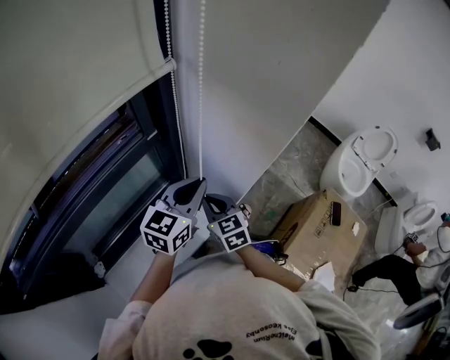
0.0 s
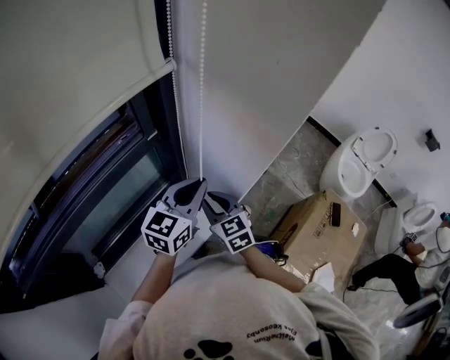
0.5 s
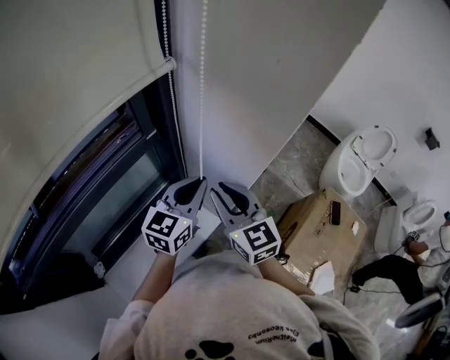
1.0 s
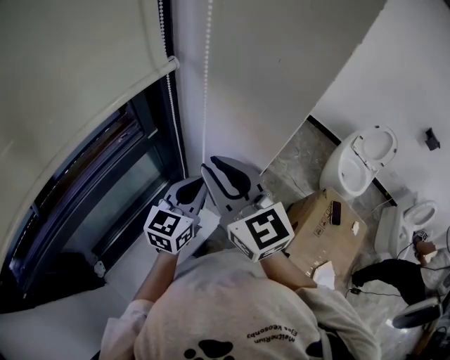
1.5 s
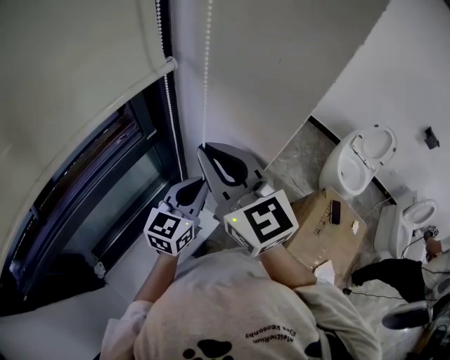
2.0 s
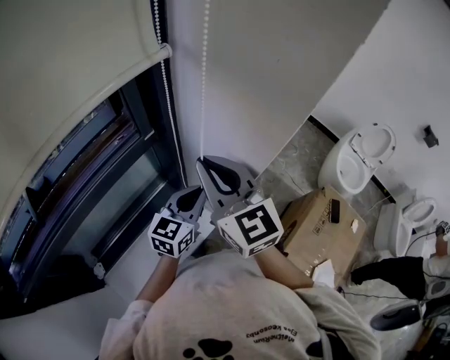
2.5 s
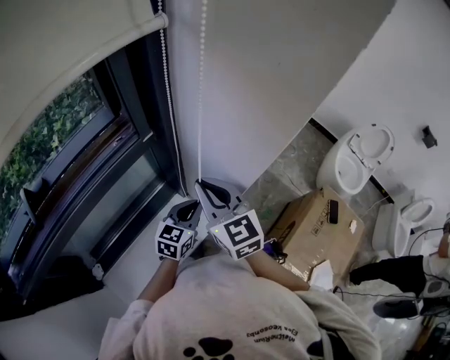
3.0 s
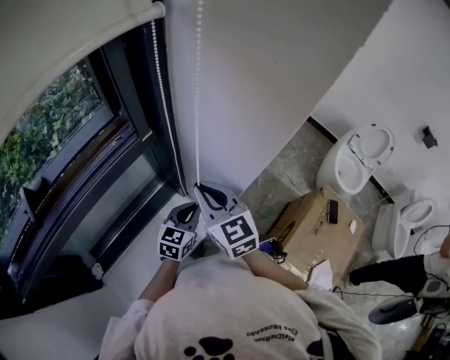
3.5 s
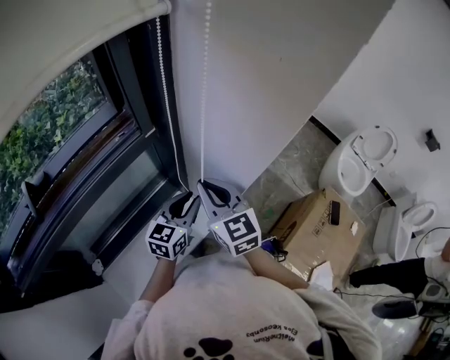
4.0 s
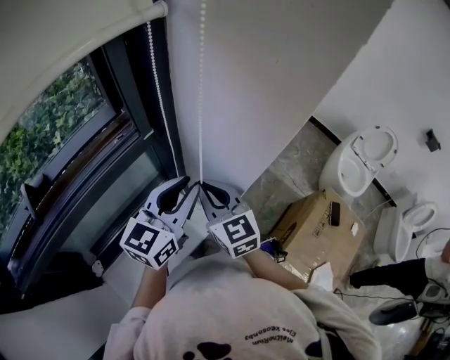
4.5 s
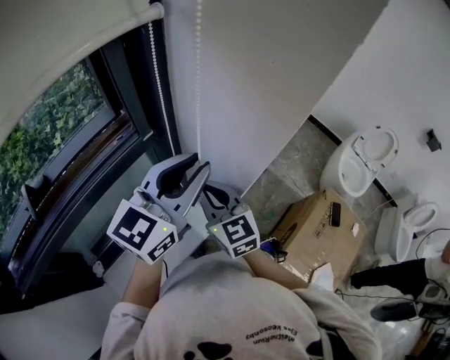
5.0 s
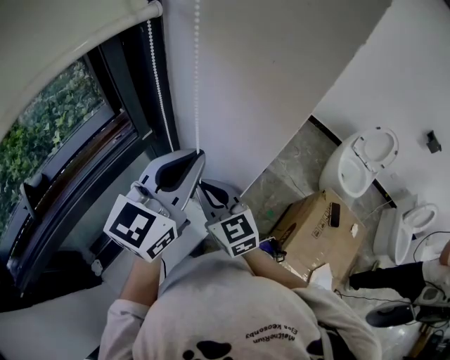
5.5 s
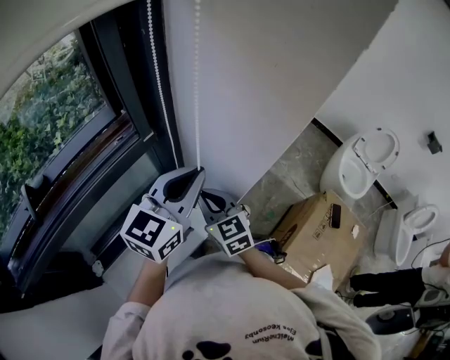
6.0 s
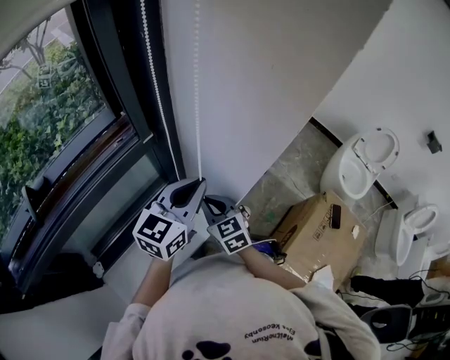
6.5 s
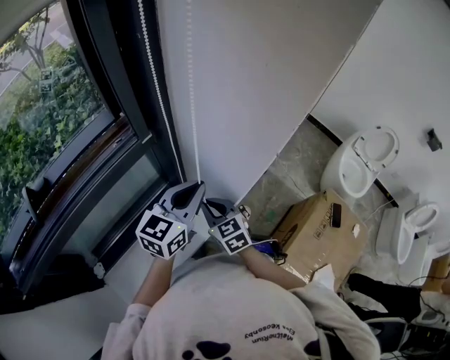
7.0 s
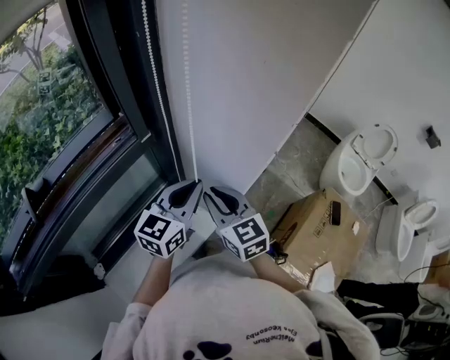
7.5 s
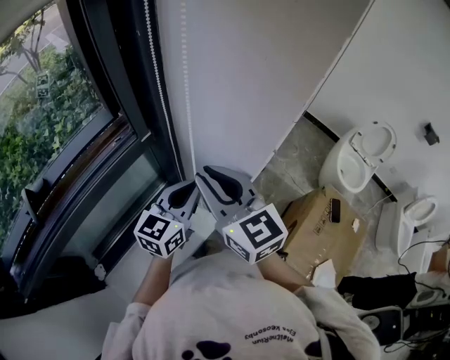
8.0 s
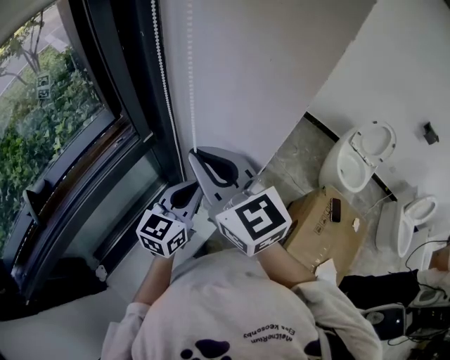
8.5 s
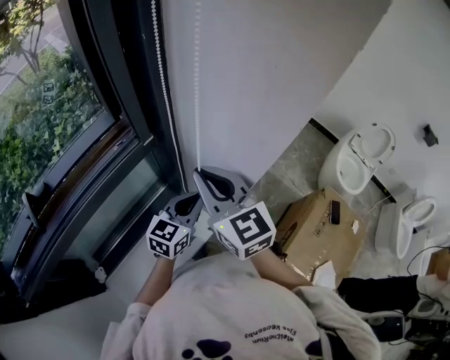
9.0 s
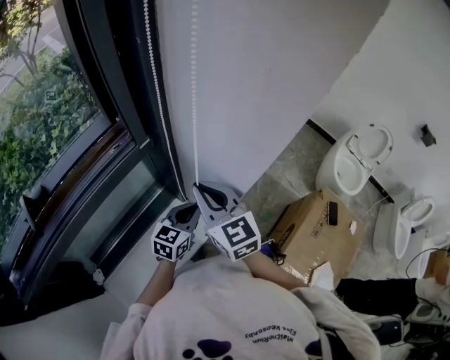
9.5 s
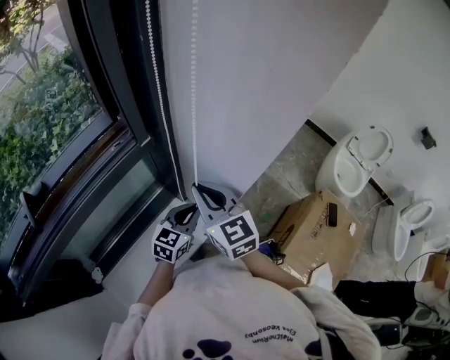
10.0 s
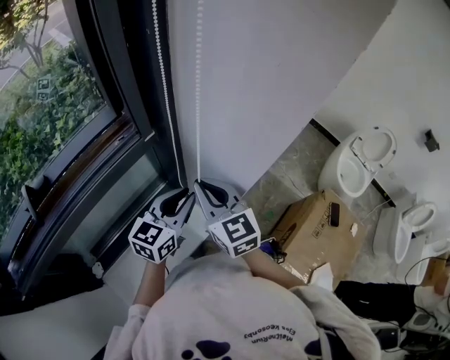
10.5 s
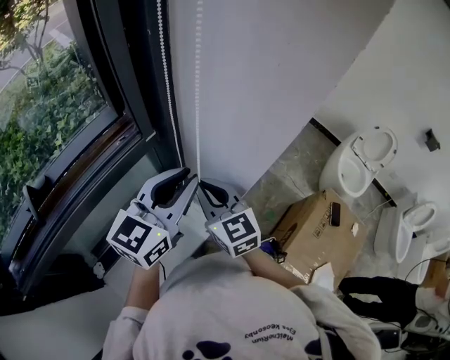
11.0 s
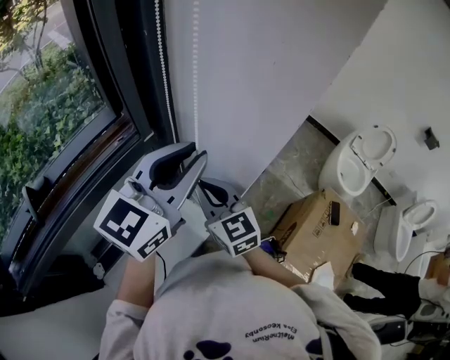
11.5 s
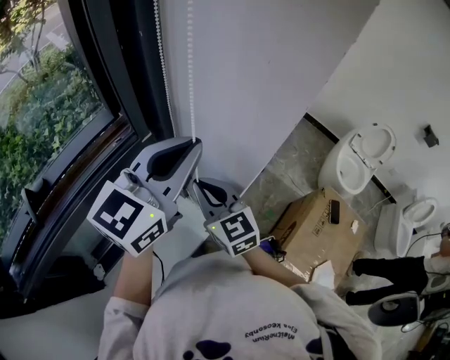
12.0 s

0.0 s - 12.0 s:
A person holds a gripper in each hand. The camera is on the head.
0.0 s - 2.0 s: The right gripper is displaced upward by some 30 cm, and turns by about 30 degrees.
2.0 s - 4.0 s: The right gripper goes about 15 cm downward. Meanwhile the left gripper moves downward, approximately 10 cm.
4.0 s - 6.0 s: The right gripper travels downward by roughly 5 cm, while the left gripper heads upward, covering about 20 cm.
6.0 s - 8.0 s: The right gripper travels upward by approximately 15 cm. The left gripper goes some 10 cm downward.
8.0 s - 10.0 s: The right gripper goes roughly 10 cm downward. The left gripper travels downward by about 15 cm.
10.0 s - 12.0 s: The left gripper is displaced upward by approximately 30 cm, and changes its angle by about 20 degrees.

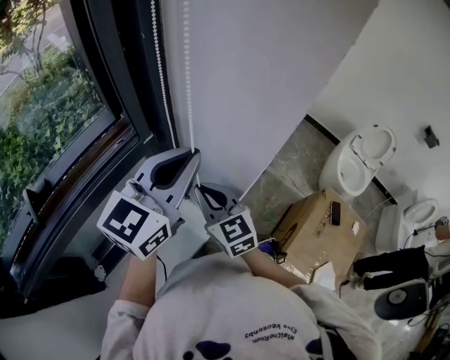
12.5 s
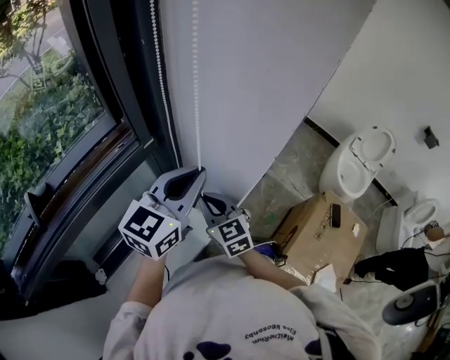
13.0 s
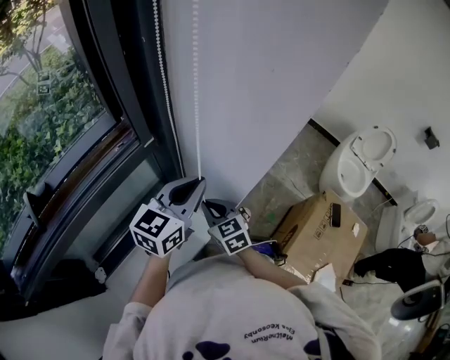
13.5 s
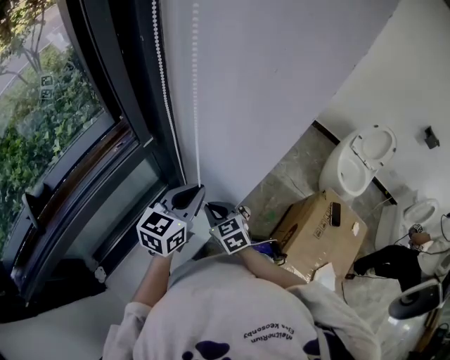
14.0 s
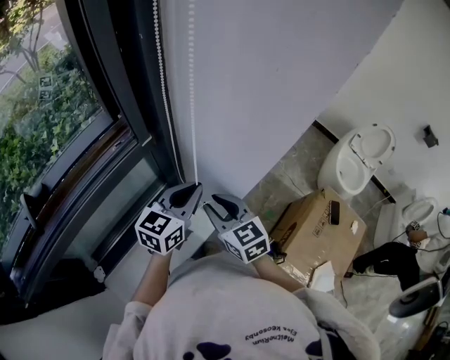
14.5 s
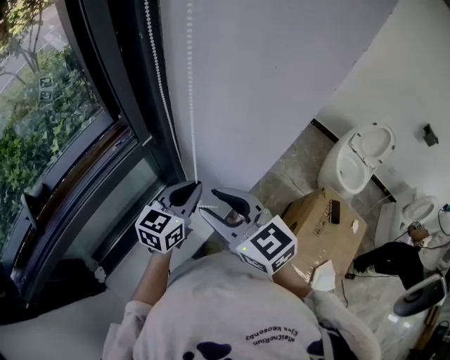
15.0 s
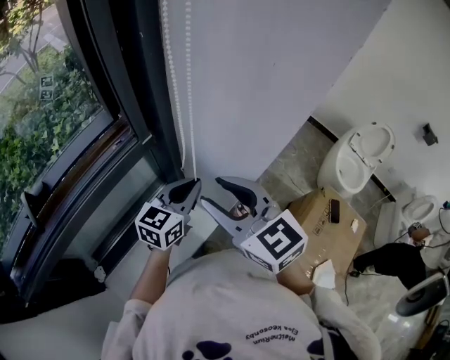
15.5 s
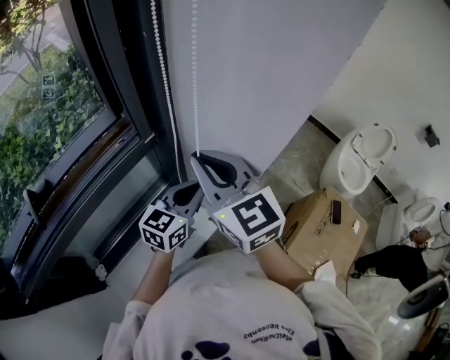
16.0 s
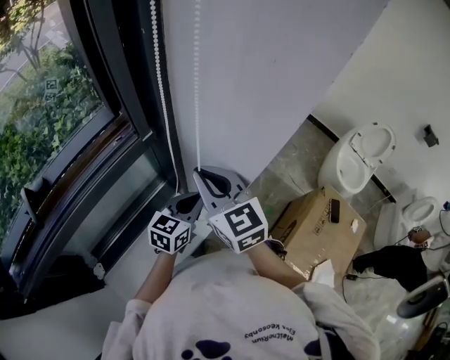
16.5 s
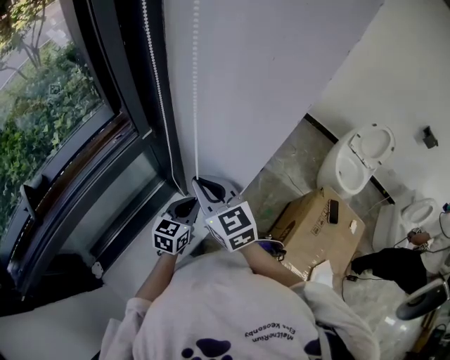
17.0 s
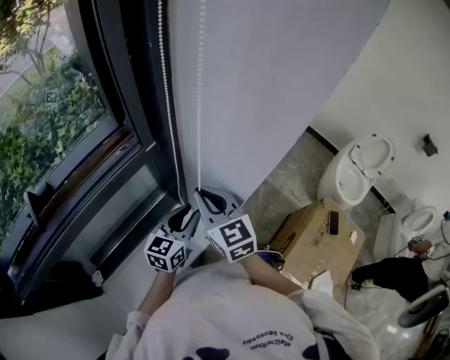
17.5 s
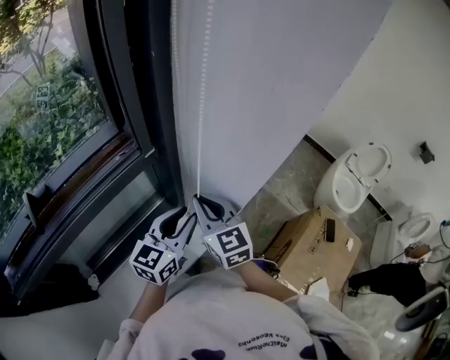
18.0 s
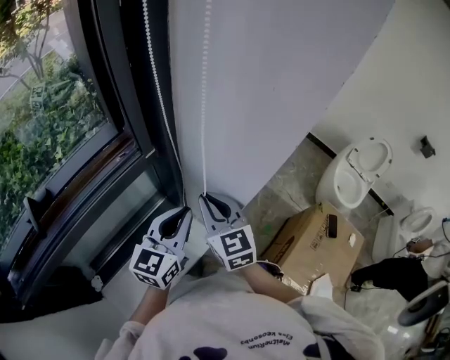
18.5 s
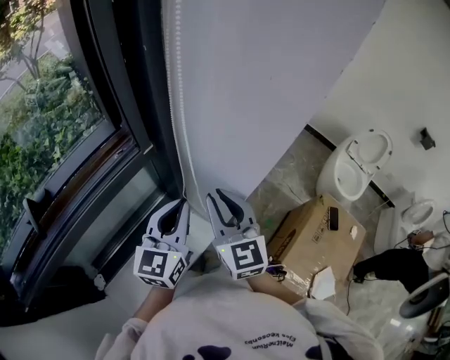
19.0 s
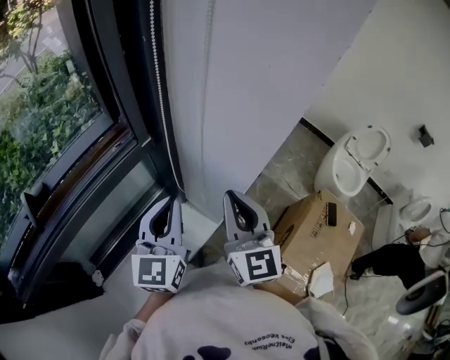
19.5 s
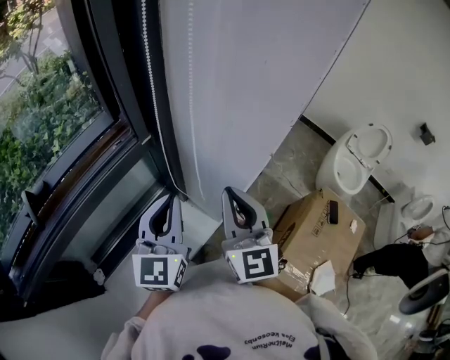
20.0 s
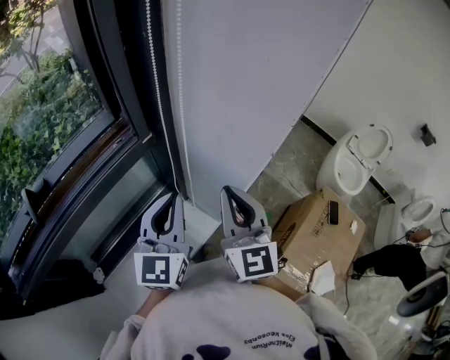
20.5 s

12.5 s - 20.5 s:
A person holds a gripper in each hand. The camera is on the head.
12.5 s - 14.5 s: The left gripper is displaced downward by some 20 cm. Meanwhile the right gripper moves some 15 cm downward and comes back, and opens up.
14.5 s - 16.5 s: The left gripper goes roughly 5 cm downward; the right gripper shifts about 10 cm upward, and closes up.
16.5 s - 18.5 s: The left gripper heads upward, covering some 10 cm.
18.5 s - 20.5 s: The right gripper heads upward and to the right, covering about 10 cm, while the left gripper is displaced upward by about 5 cm.

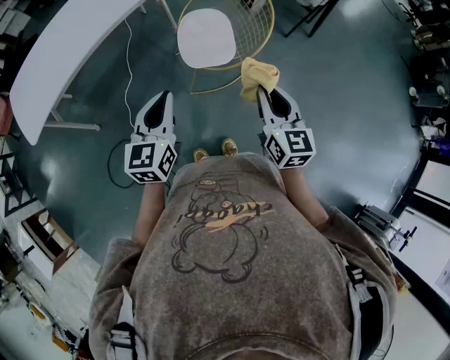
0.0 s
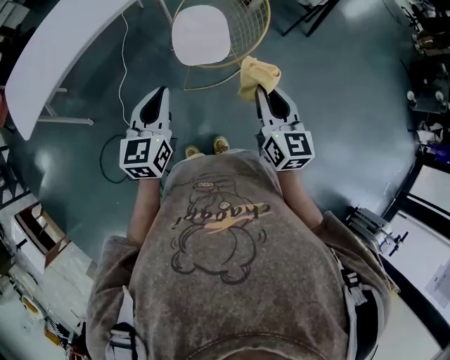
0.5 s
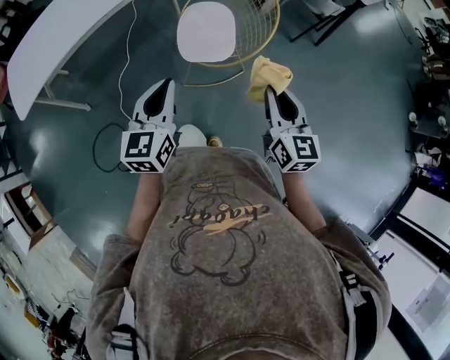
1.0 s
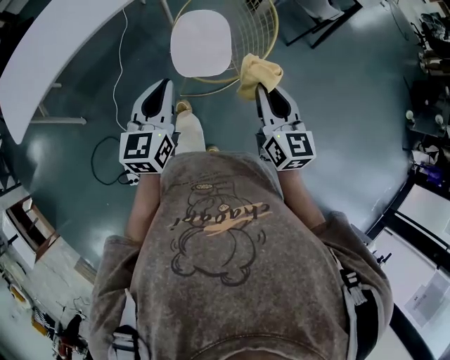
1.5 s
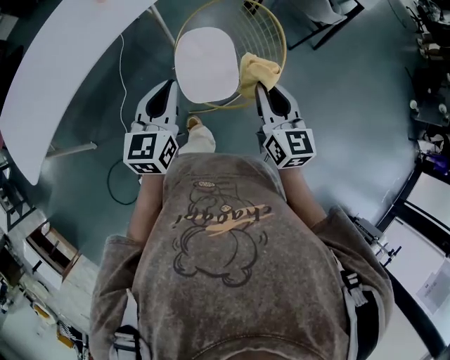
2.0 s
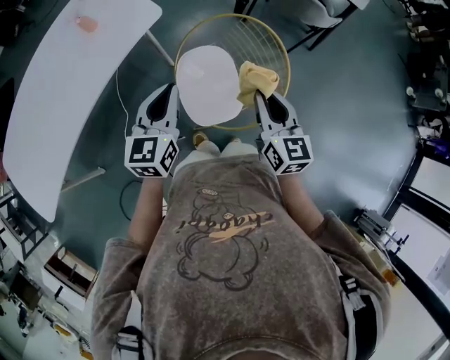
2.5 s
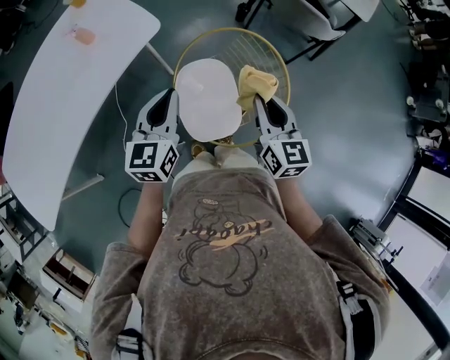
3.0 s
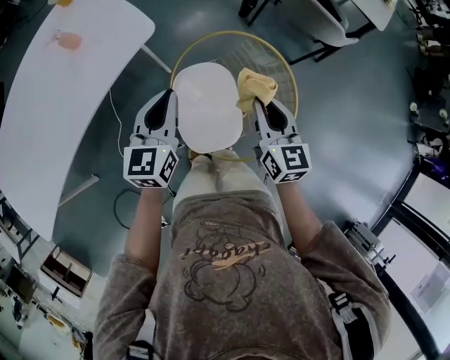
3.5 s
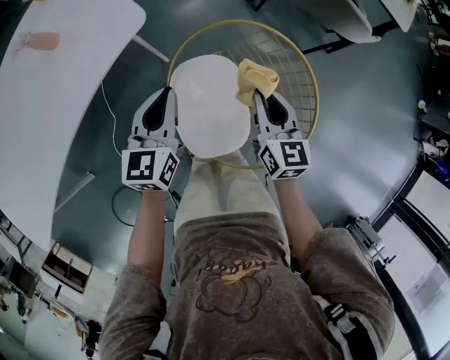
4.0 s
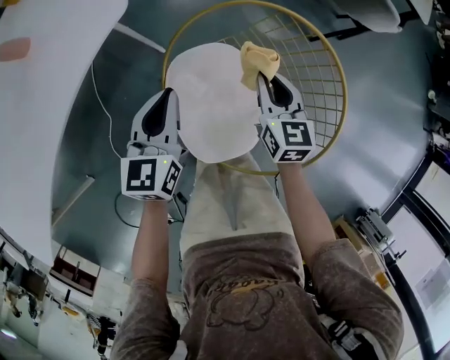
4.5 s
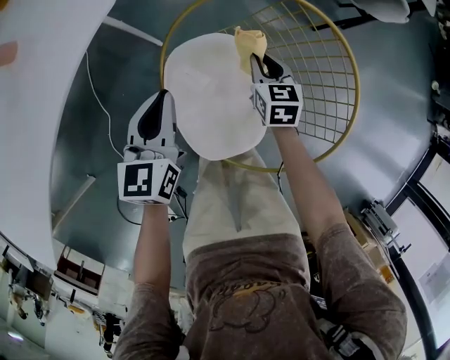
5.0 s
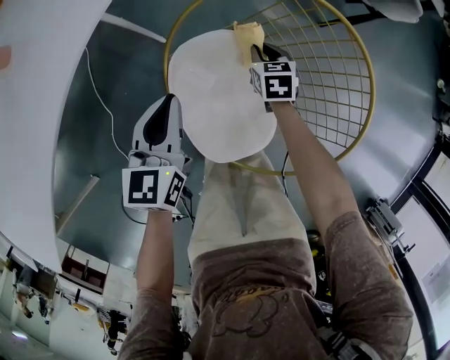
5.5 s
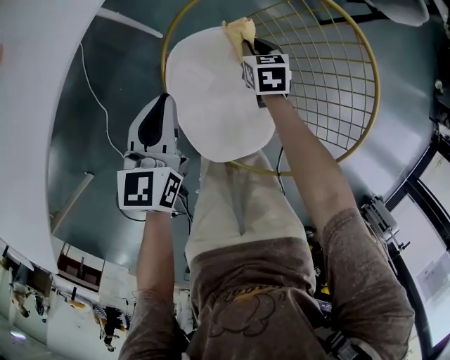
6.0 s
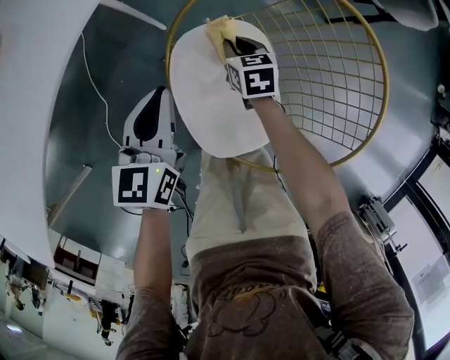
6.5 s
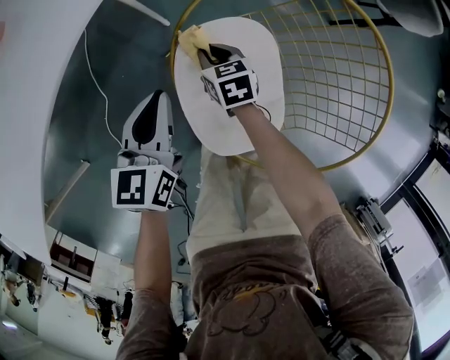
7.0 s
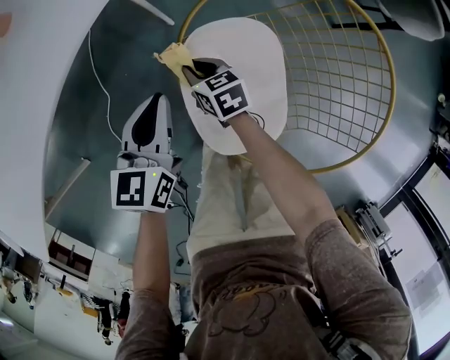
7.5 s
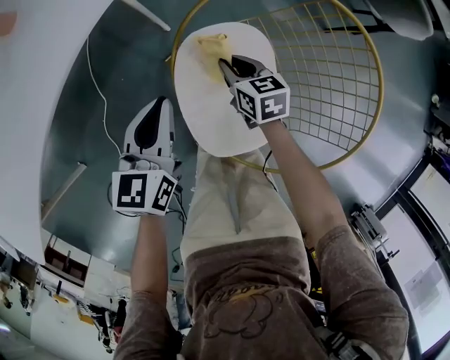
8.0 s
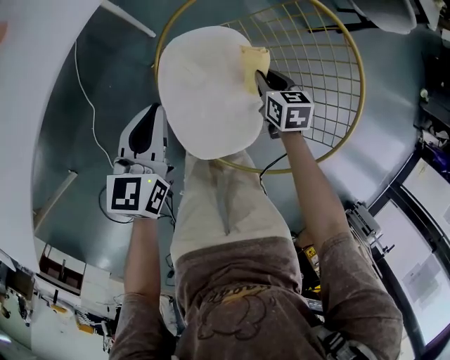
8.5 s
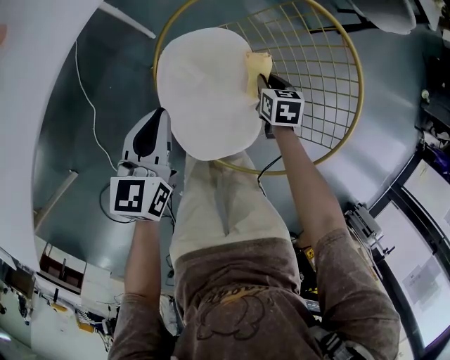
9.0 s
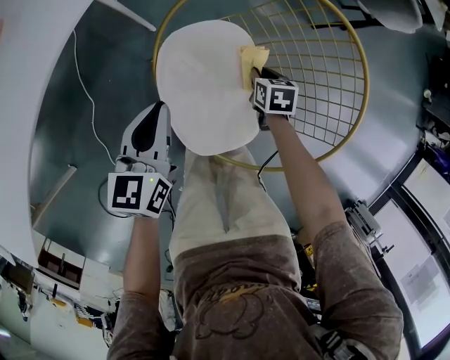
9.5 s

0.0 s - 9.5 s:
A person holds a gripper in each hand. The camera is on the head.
0.0 s - 2.0 s: Both grippers travel together forward, approximately 25 cm.
2.0 s - 4.0 s: The grippers both shift forward and downward by some 30 cm.
4.0 s - 5.5 s: The left gripper moves downward, roughly 15 cm. Meanwhile the right gripper is displaced downward by some 30 cm, and tips its fingers downward by some 30 degrees.
5.5 s - 7.5 s: The right gripper heads to the left, covering about 20 cm, and changes its angle by roughly 30 degrees.
7.5 s - 9.5 s: The right gripper shifts approximately 25 cm to the right, and turns by approximately 30 degrees; the left gripper travels to the right by roughly 5 cm.
